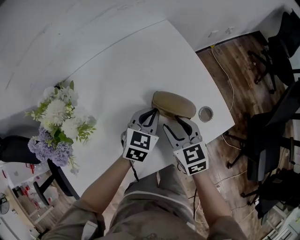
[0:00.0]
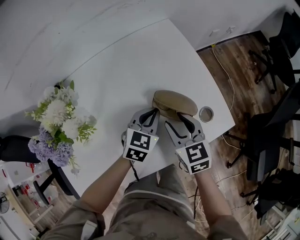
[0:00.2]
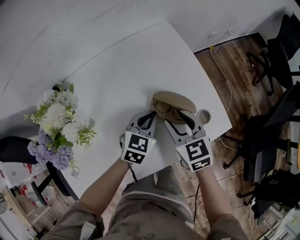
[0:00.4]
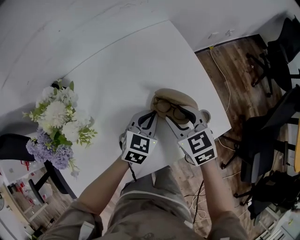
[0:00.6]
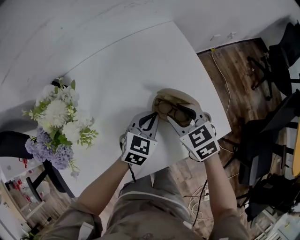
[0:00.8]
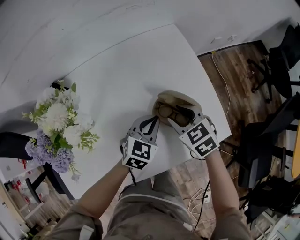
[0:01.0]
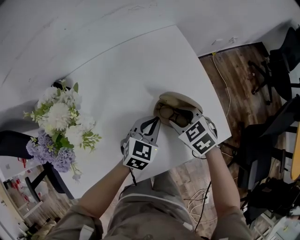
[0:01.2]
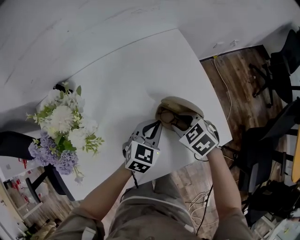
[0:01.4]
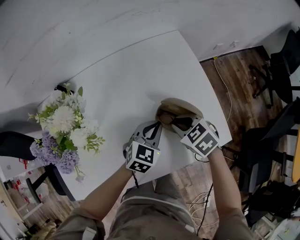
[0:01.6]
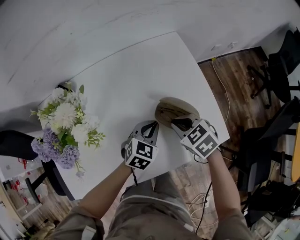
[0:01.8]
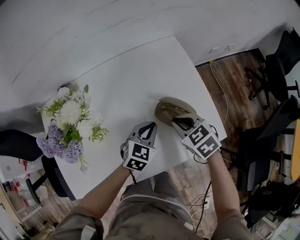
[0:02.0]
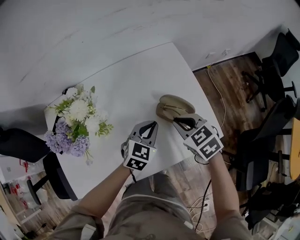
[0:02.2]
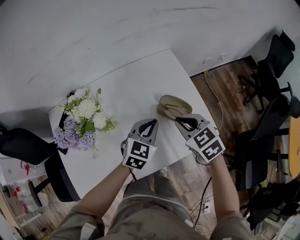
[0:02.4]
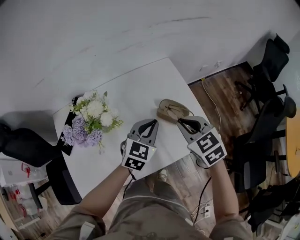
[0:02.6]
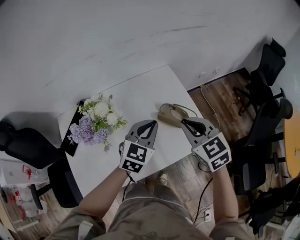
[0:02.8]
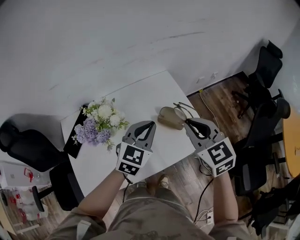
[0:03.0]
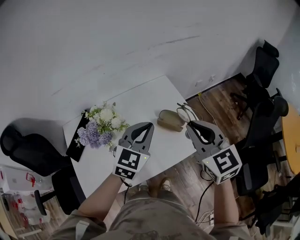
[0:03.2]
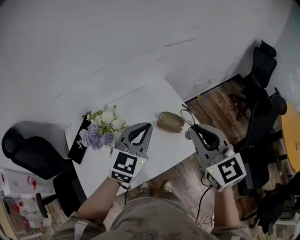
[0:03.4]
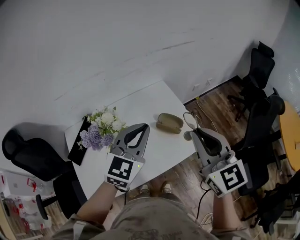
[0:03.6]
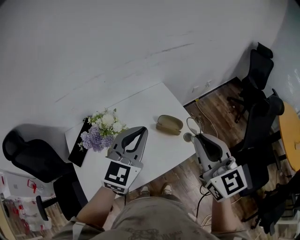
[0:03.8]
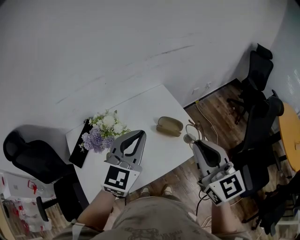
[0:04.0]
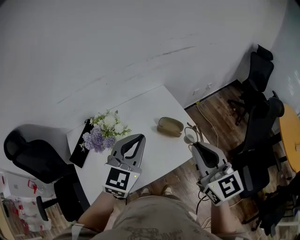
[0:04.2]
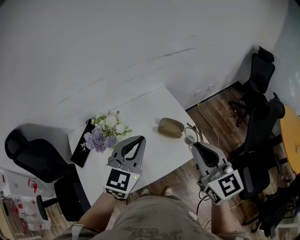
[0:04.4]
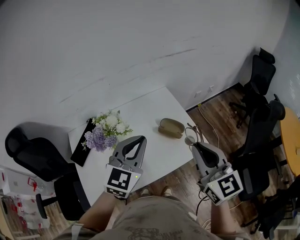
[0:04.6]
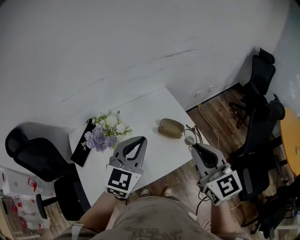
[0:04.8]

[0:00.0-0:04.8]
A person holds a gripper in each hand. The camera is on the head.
0.0 to 1.6 s: The right gripper swivels some 40 degrees, and closes up.
1.6 to 3.2 s: The grippers both shift upward by some 30 cm. The left gripper swivels approximately 20 degrees; the right gripper tilts its fingers about 40 degrees upward.
3.2 to 4.8 s: The left gripper is displaced upward and backward by approximately 10 cm. The right gripper travels backward by roughly 10 cm.

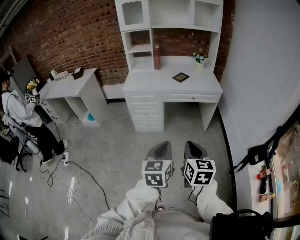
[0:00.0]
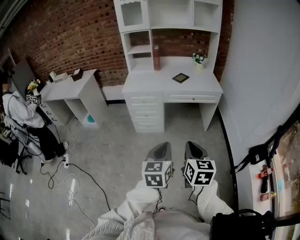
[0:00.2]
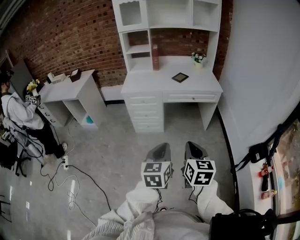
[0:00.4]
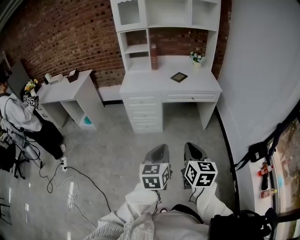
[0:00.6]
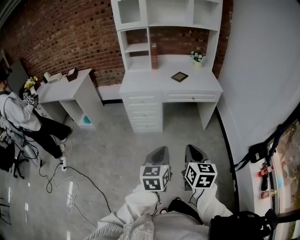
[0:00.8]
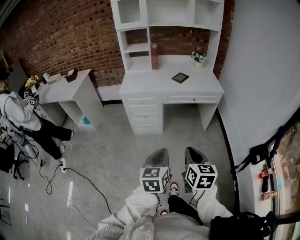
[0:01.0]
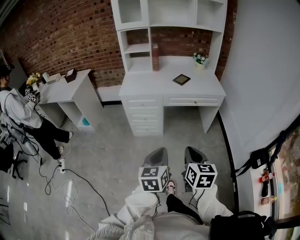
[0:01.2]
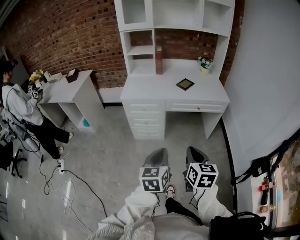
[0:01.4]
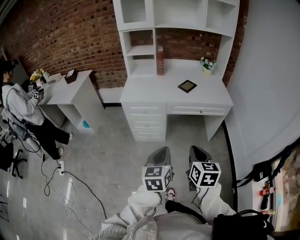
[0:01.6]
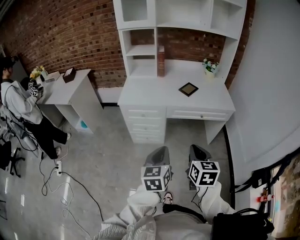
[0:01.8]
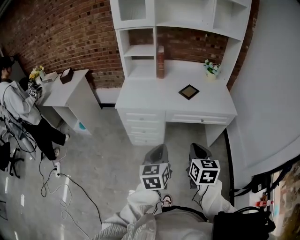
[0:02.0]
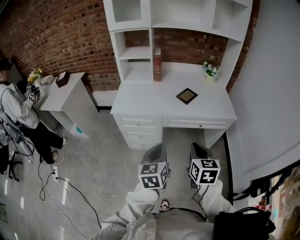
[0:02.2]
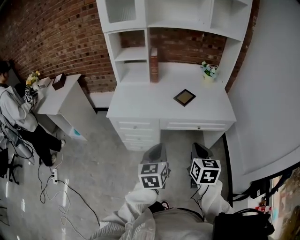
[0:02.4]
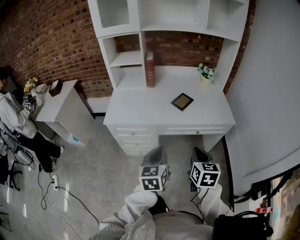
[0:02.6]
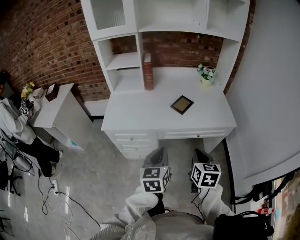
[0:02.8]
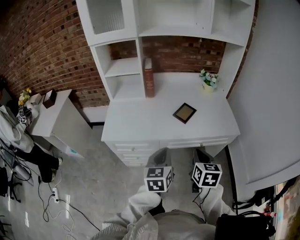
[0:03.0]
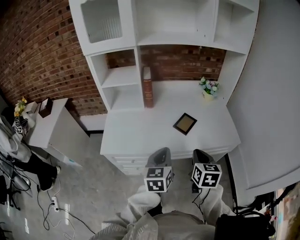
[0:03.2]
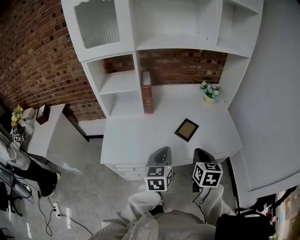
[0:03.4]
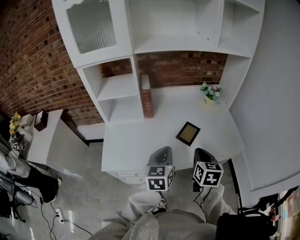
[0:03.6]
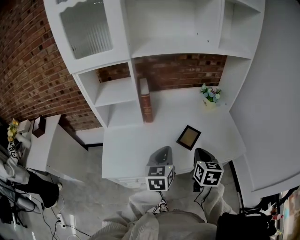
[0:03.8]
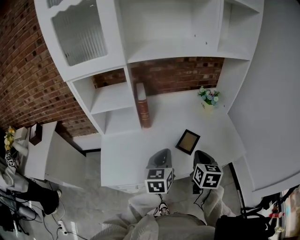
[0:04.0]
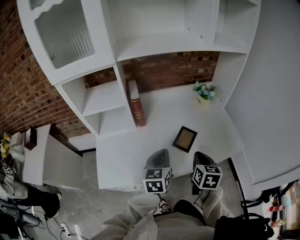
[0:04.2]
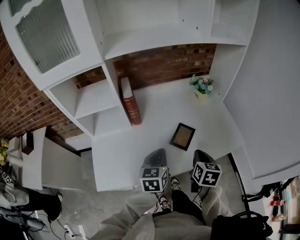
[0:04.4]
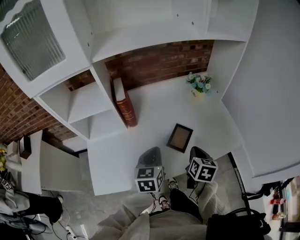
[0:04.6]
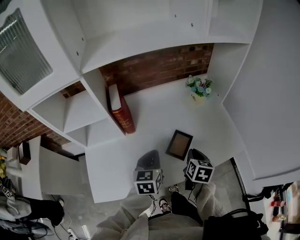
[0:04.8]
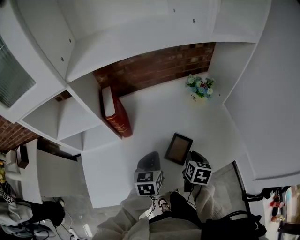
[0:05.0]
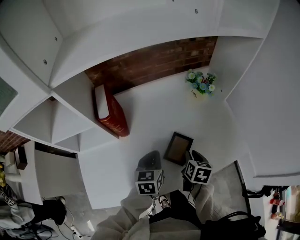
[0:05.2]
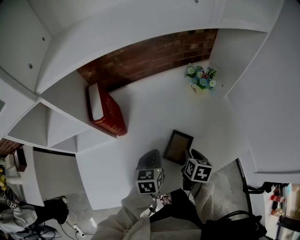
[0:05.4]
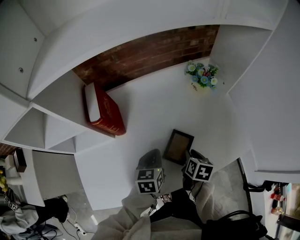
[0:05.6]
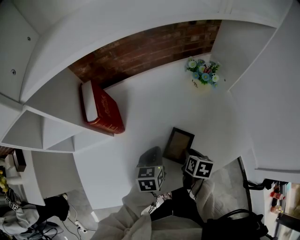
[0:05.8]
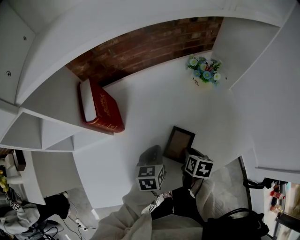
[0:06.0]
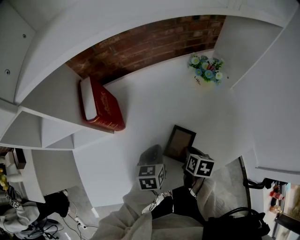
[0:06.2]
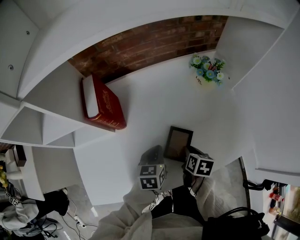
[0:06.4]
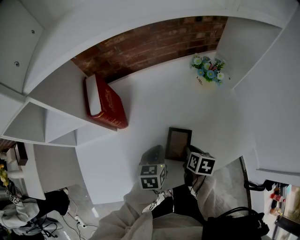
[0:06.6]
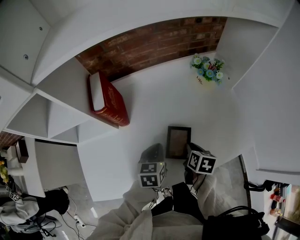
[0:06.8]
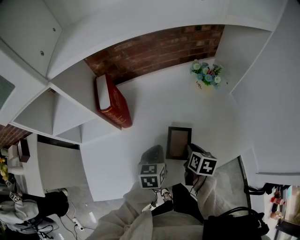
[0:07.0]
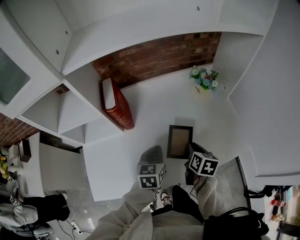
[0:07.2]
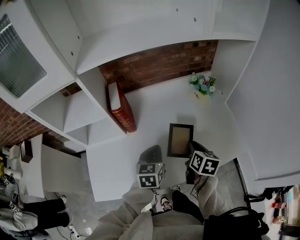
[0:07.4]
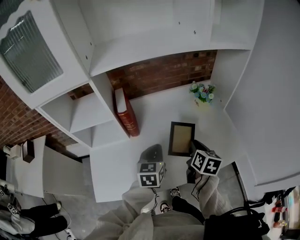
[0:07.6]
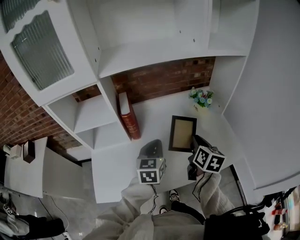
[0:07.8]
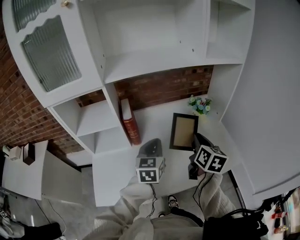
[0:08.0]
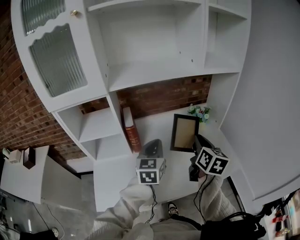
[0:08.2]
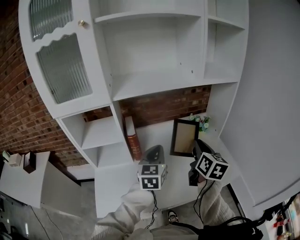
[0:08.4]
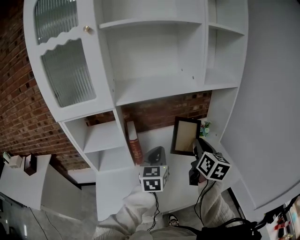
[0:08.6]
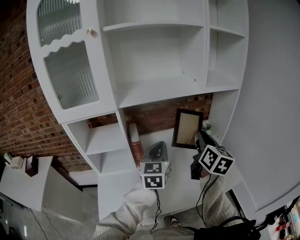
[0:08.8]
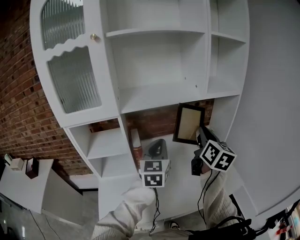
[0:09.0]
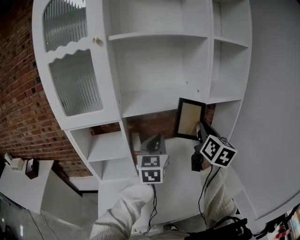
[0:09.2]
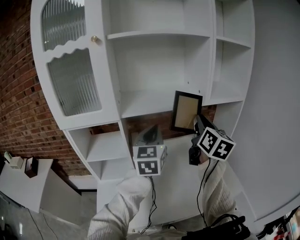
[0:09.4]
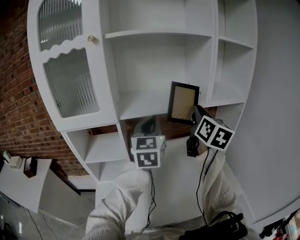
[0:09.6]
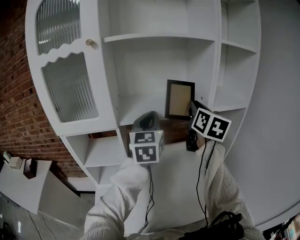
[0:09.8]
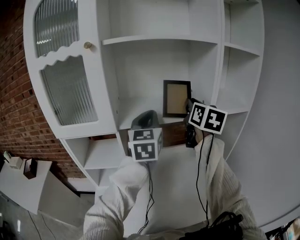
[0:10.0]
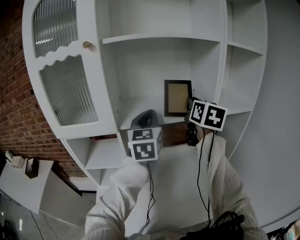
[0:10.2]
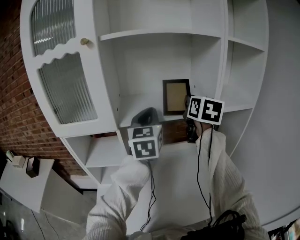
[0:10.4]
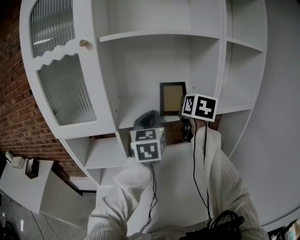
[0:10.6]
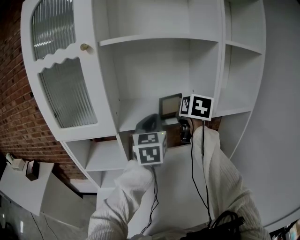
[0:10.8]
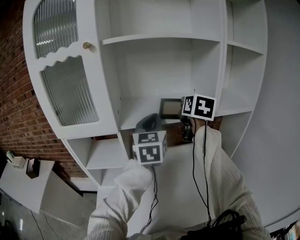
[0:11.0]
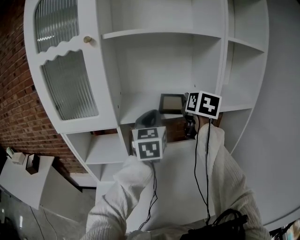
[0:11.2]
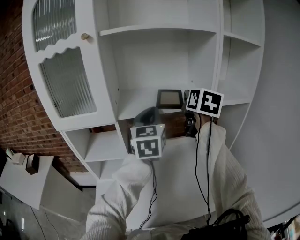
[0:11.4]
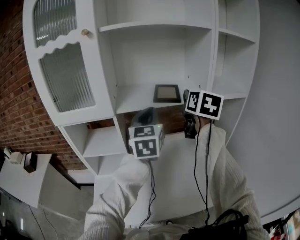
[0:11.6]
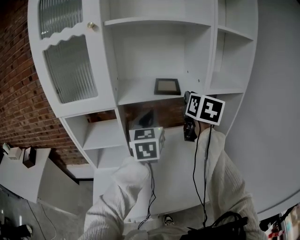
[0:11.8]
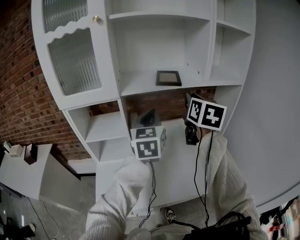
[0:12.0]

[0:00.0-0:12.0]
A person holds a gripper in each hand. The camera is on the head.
0.0 to 1.6 s: The two grippers go approximately 20 cm forward.
1.6 to 3.0 s: Both grippers travel together forward, some 35 cm.
3.0 to 4.4 s: Both grippers move forward, roughly 20 cm.
4.4 to 6.0 s: The left gripper goes some 20 cm forward and downward. Meanwhile the right gripper moves downward and forward, roughly 20 cm, and rotates approximately 30 degrees.
6.0 to 7.6 s: Both grippers travel together upward, roughly 15 cm. The right gripper changes its angle by about 30 degrees.
7.6 to 9.0 s: The two grippers go about 25 cm upward. The right gripper tilts its fingers approximately 30 degrees upward. Meanwhile the left gripper turns by roughly 30 degrees.
9.0 to 10.4 s: The right gripper travels forward and upward by some 20 cm. Meanwhile the left gripper shifts about 20 cm upward and forward.
10.4 to 12.0 s: The left gripper moves backward and downward, some 15 cm. Meanwhile the right gripper goes some 15 cm backward.

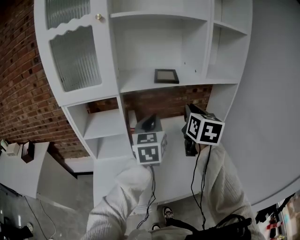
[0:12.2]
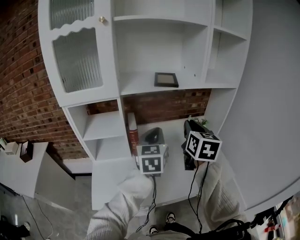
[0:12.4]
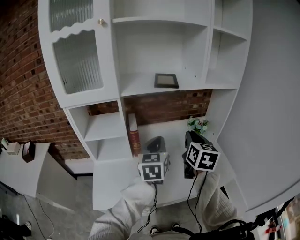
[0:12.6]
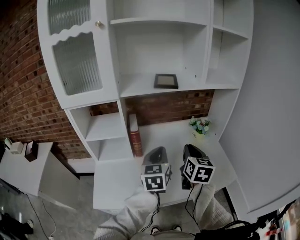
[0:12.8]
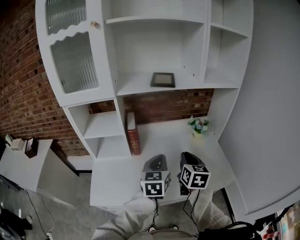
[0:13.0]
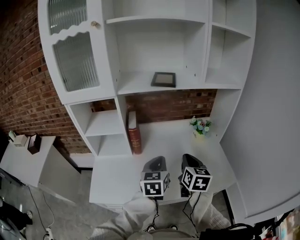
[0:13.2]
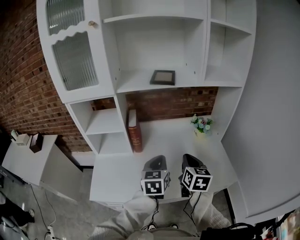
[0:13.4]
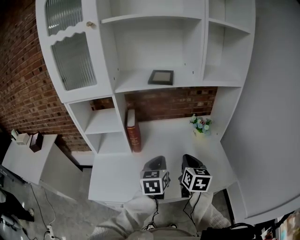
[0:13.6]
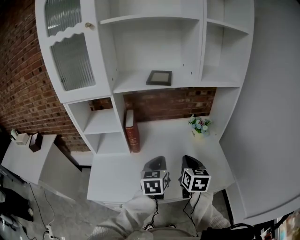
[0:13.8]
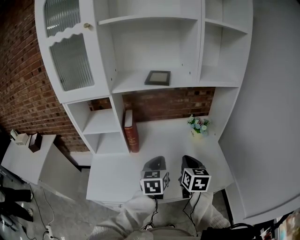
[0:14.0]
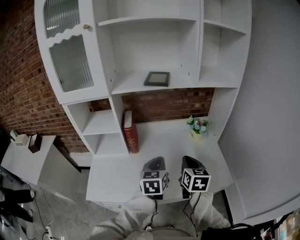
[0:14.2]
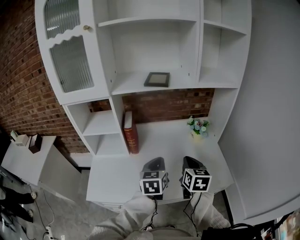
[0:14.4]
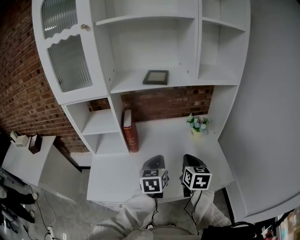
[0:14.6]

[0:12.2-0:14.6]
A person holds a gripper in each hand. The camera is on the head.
12.2 to 13.4 s: The right gripper travels downward by about 20 cm. Meanwhile the left gripper goes about 20 cm downward, backward and to the right.
13.4 to 14.6 s: The grippers move only a little.

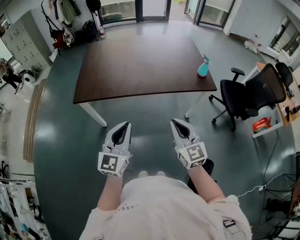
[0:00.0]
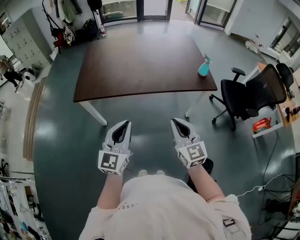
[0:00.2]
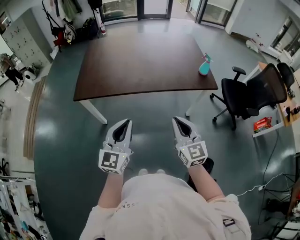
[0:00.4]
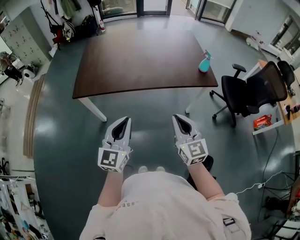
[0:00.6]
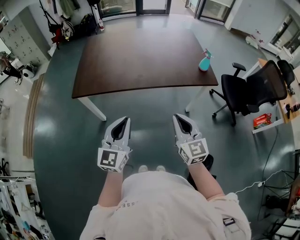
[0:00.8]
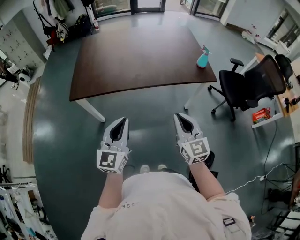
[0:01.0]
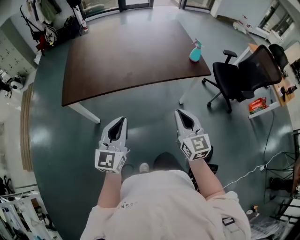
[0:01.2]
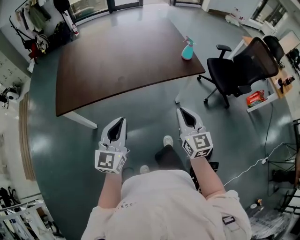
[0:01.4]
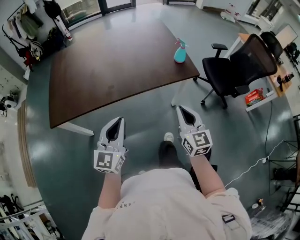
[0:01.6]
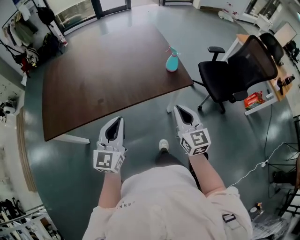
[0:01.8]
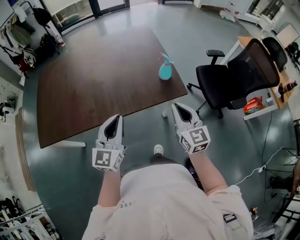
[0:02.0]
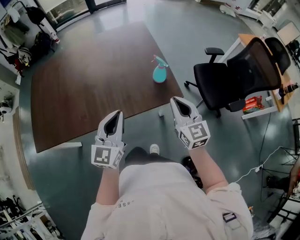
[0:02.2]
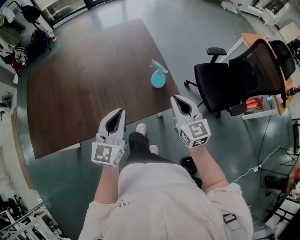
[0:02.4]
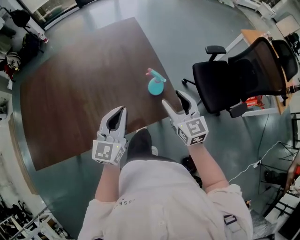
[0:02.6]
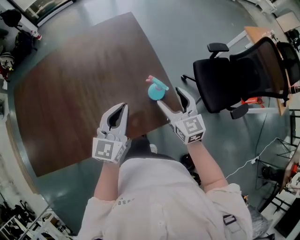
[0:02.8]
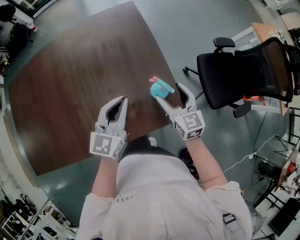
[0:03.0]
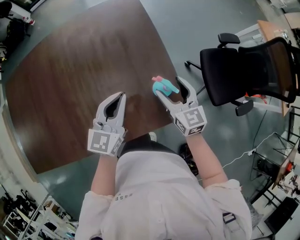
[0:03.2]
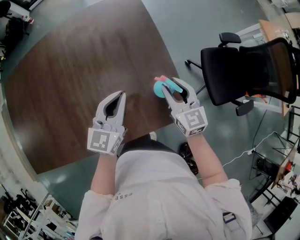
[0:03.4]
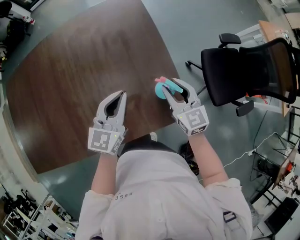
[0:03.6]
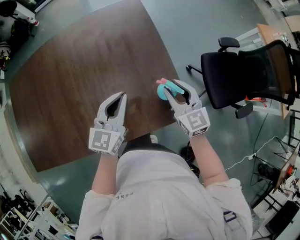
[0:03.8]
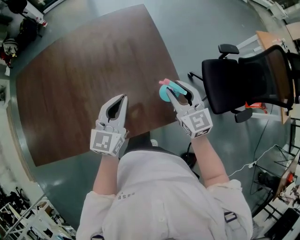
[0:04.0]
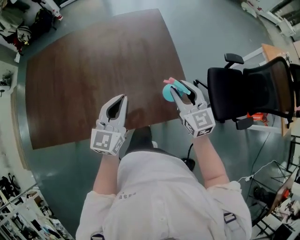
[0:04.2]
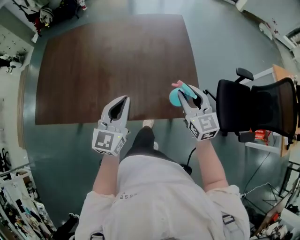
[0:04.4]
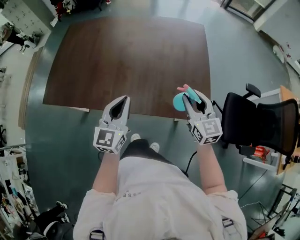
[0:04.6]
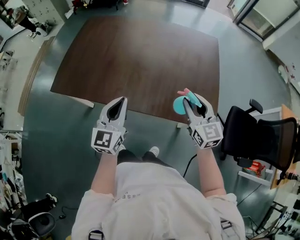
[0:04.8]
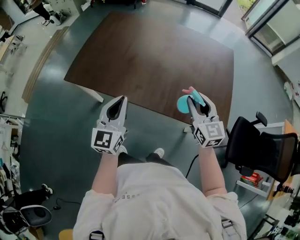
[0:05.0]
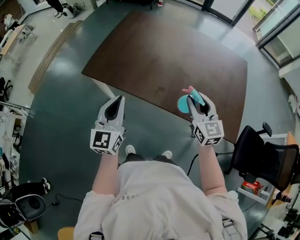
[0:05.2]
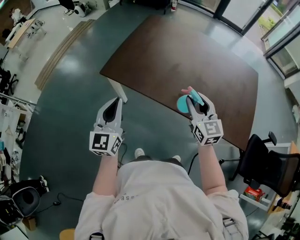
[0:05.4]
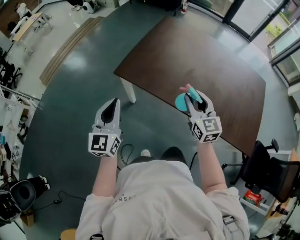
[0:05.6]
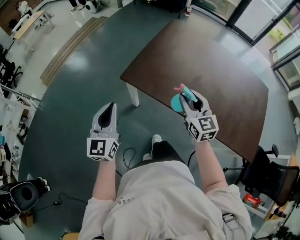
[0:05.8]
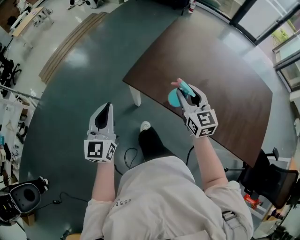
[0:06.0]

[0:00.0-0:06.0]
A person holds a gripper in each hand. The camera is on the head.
0.0 to 1.6 s: The left gripper goes about 15 cm forward and to the right; the right gripper travels to the right and forward by approximately 15 cm, and swivels about 20 degrees.
1.6 to 3.0 s: The pair of grippers is taken forward, some 50 cm. The right gripper opens its fingers.
3.0 to 4.4 s: The left gripper moves backward and to the left, approximately 15 cm, and swivels roughly 20 degrees. The right gripper moves upward and backward, approximately 10 cm, and closes its fingers.
4.4 to 6.0 s: The pair of grippers is taken about 70 cm. The left gripper changes its angle by roughly 50 degrees, while the right gripper turns by about 30 degrees.
